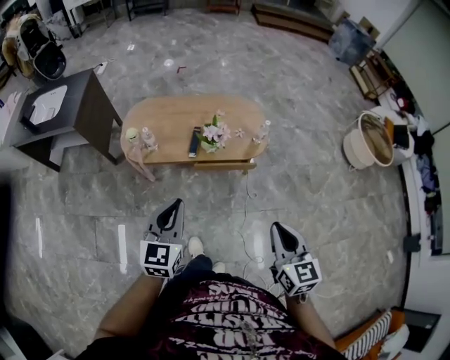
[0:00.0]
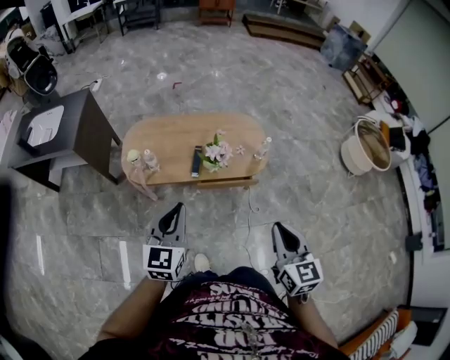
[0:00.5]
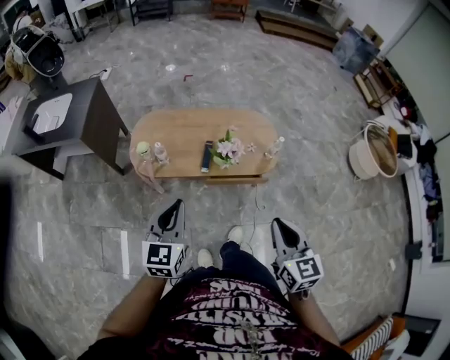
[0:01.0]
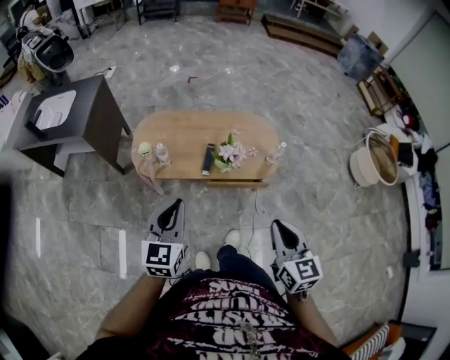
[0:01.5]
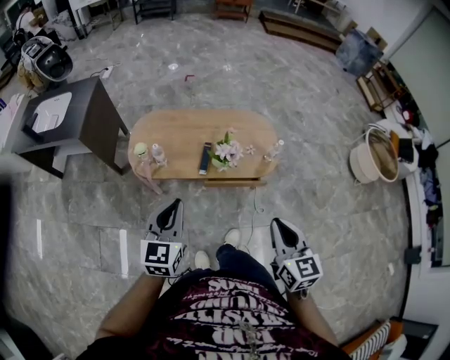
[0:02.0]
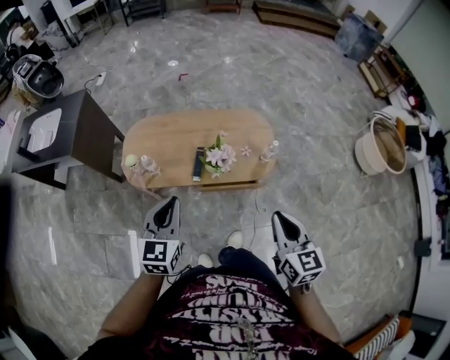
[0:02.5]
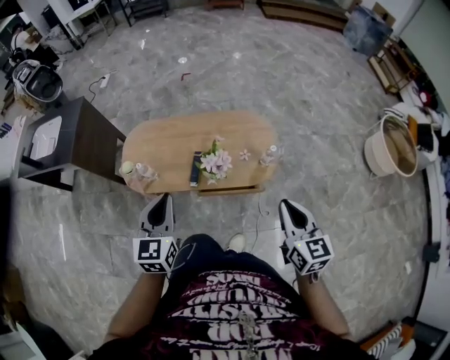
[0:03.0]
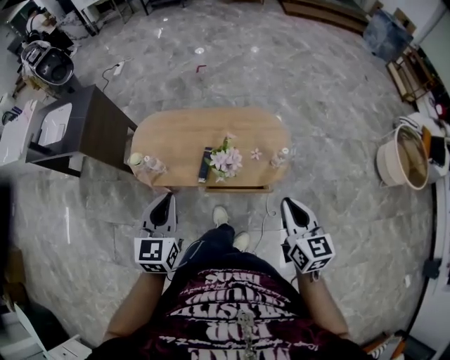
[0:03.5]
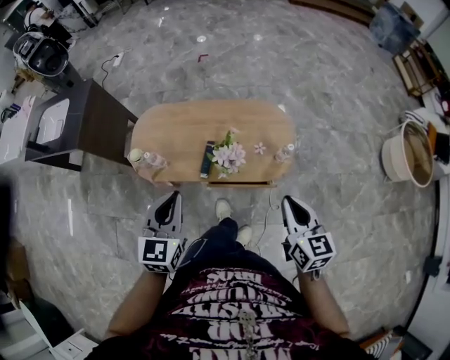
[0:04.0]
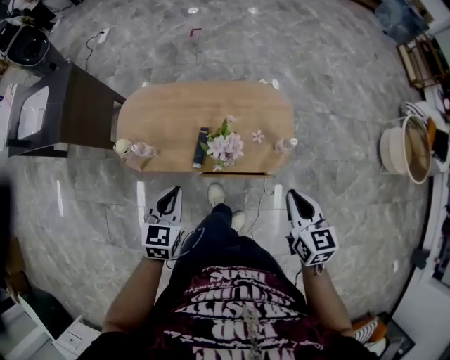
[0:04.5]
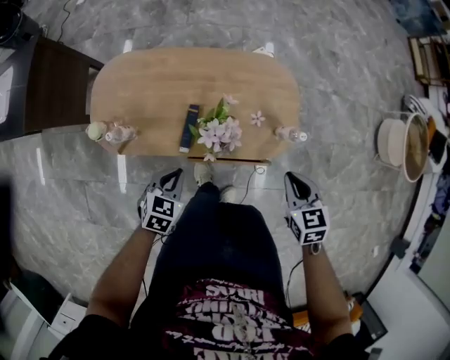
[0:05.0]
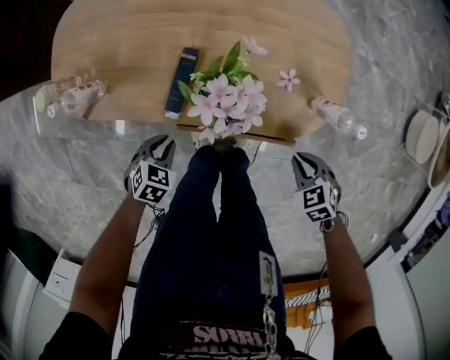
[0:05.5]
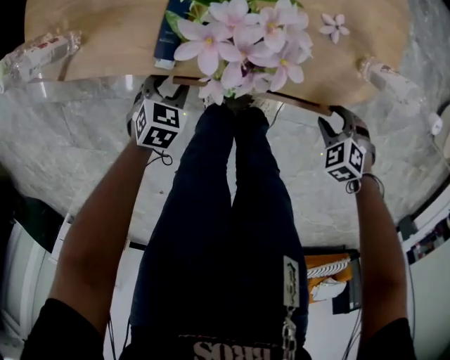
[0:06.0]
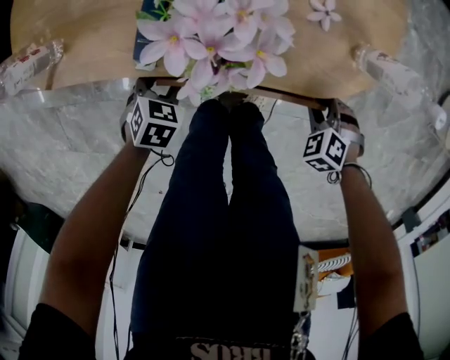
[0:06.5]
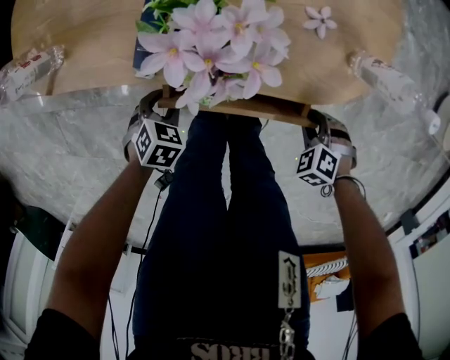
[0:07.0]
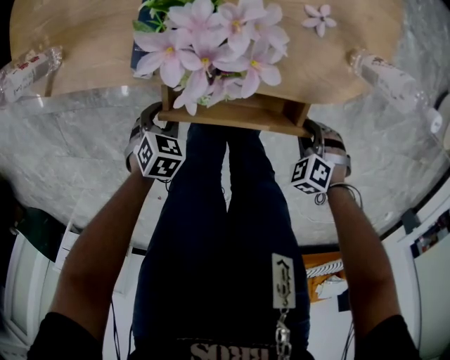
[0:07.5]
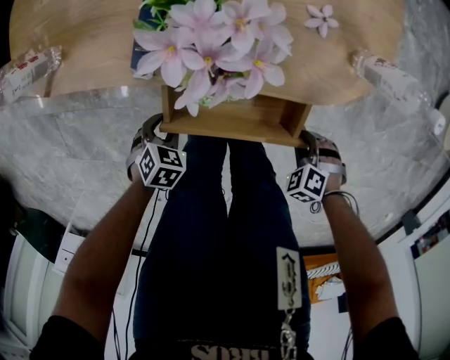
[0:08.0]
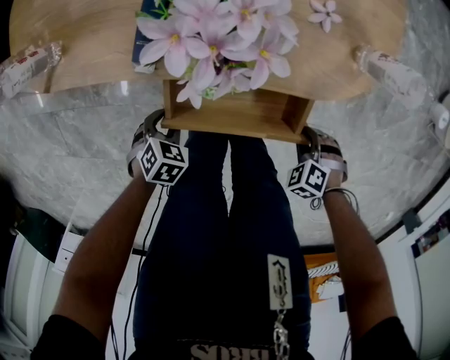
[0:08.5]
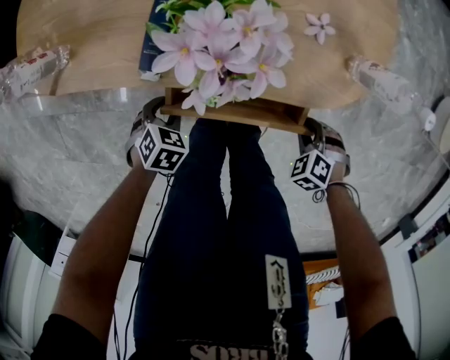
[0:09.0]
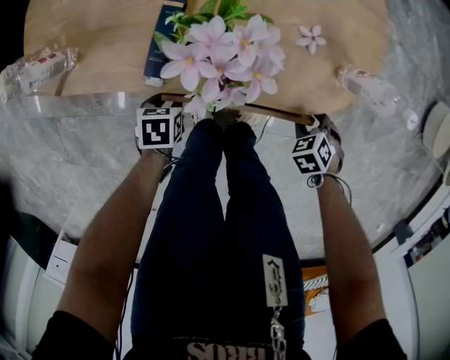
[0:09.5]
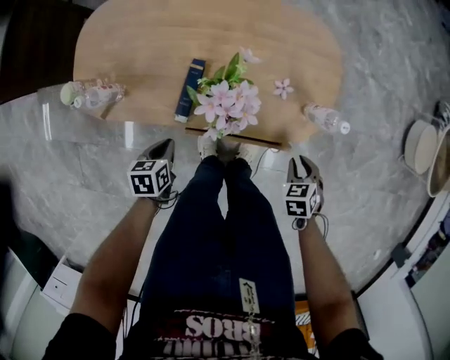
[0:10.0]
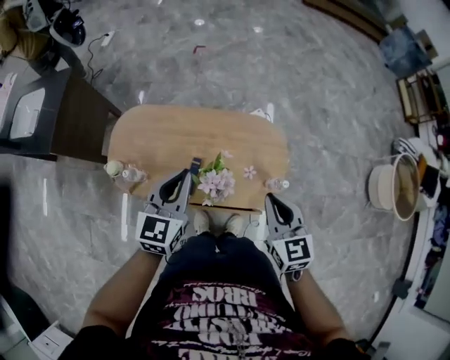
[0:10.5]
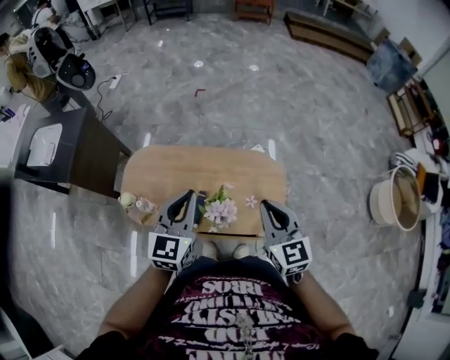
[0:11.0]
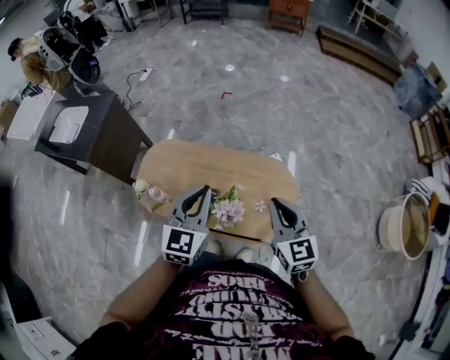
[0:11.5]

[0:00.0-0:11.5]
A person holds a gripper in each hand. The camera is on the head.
0.0 to 2.0 s: Both grippers move forward and to the left, roughly 10 cm.
2.0 to 4.0 s: Both grippers travel together forward and to the right, some 20 cm.
4.0 to 6.0 s: Both grippers travel together downward, some 60 cm. The left gripper angles its fingers downward, by some 50 degrees, and opens its fingers. The right gripper angles its fingers downward, by some 60 degrees, and opens its fingers.
6.0 to 7.5 s: The right gripper ends up some 5 cm from where it was, and closes its fingers; the left gripper shifts by roughly 10 cm.
7.5 to 9.5 s: The left gripper changes place by approximately 5 cm, and changes its angle by roughly 30 degrees, while the right gripper shifts by approximately 10 cm, turns by some 30 degrees, and opens.
9.5 to 11.5 s: Both grippers move upward, about 70 cm. The left gripper points its fingers approximately 60 degrees further upward, and closes its fingers. The right gripper tips its fingers upward by some 70 degrees, and closes up.

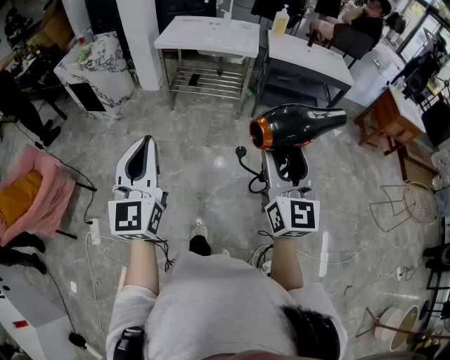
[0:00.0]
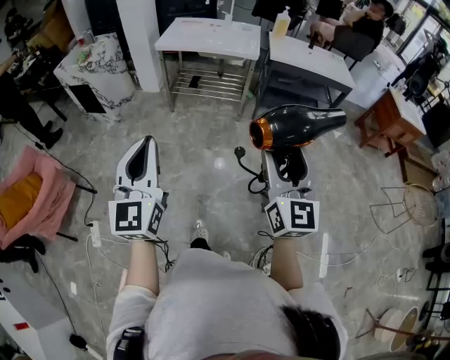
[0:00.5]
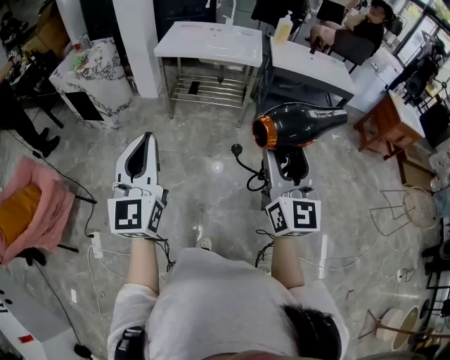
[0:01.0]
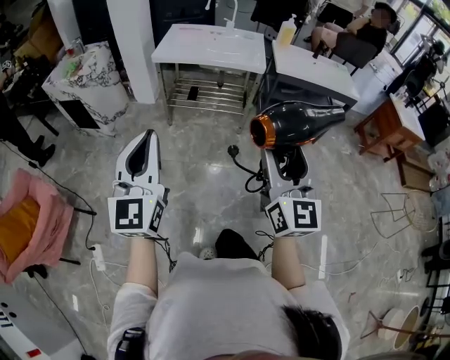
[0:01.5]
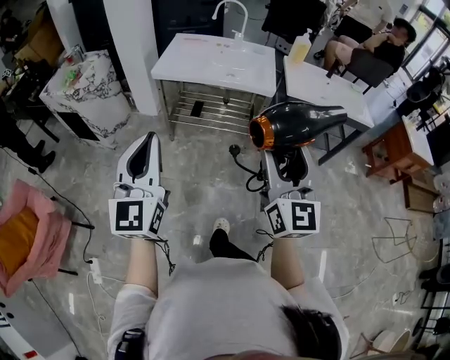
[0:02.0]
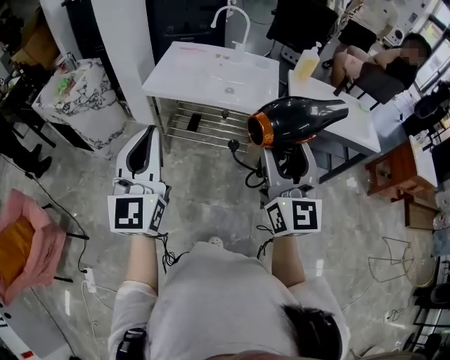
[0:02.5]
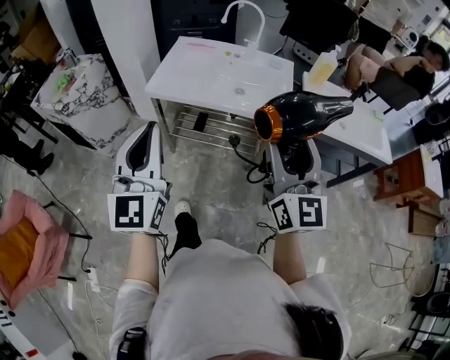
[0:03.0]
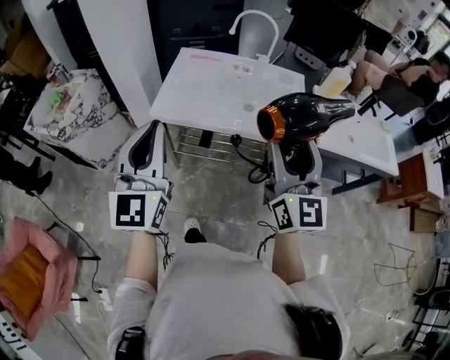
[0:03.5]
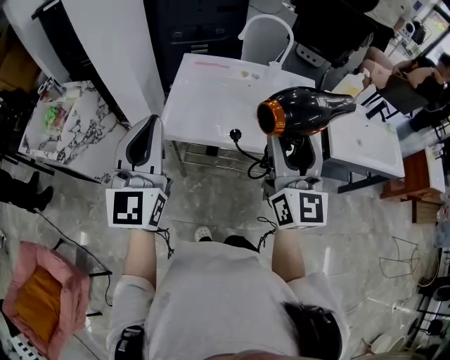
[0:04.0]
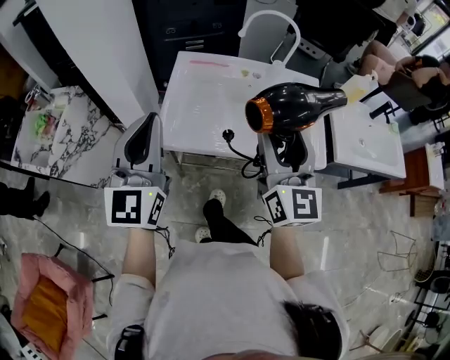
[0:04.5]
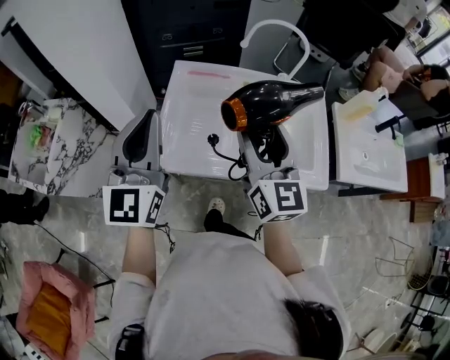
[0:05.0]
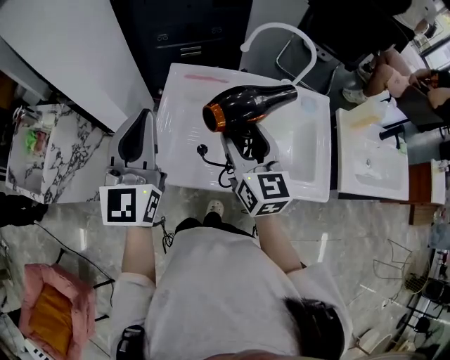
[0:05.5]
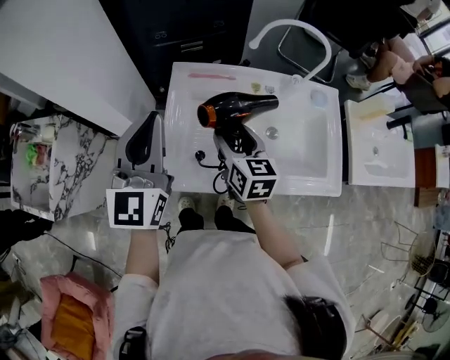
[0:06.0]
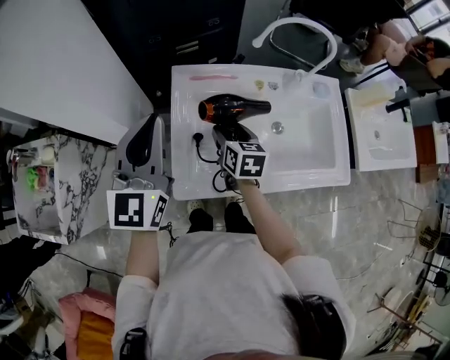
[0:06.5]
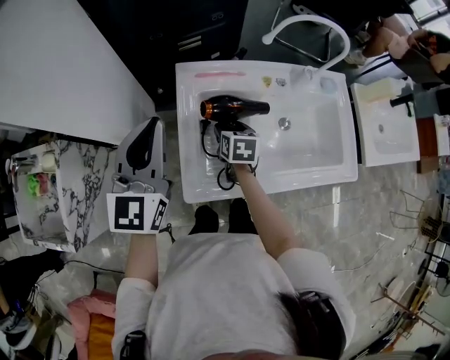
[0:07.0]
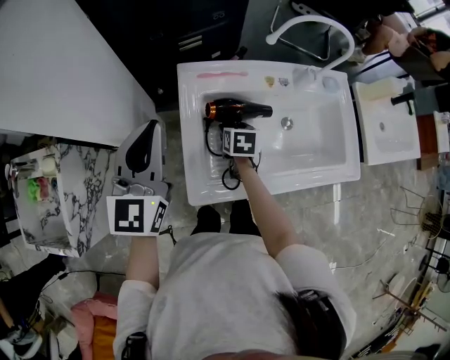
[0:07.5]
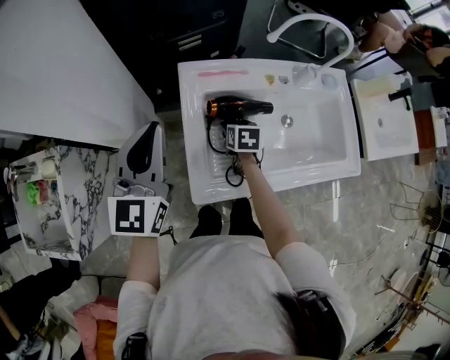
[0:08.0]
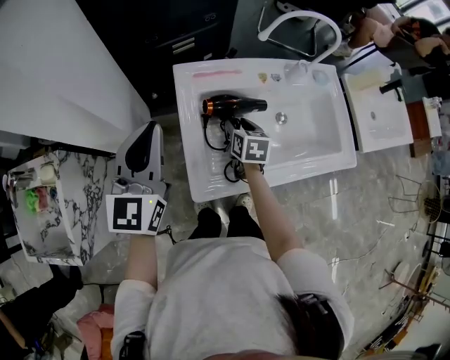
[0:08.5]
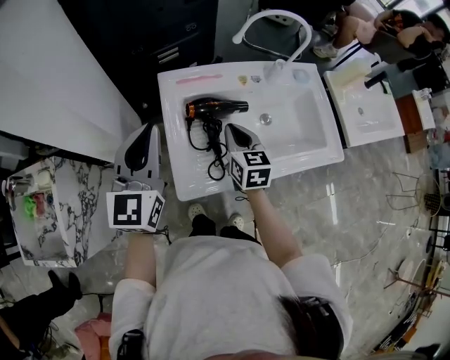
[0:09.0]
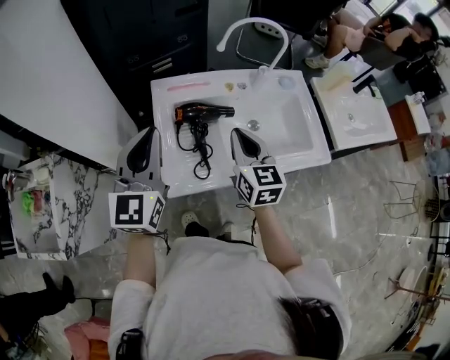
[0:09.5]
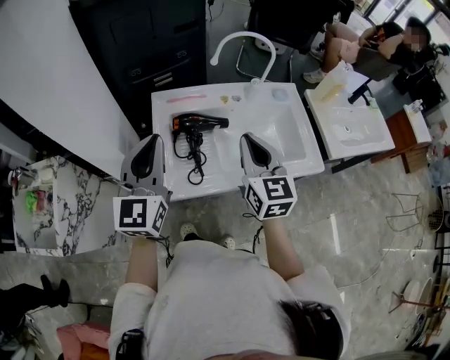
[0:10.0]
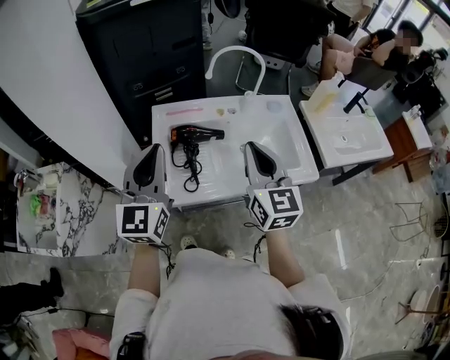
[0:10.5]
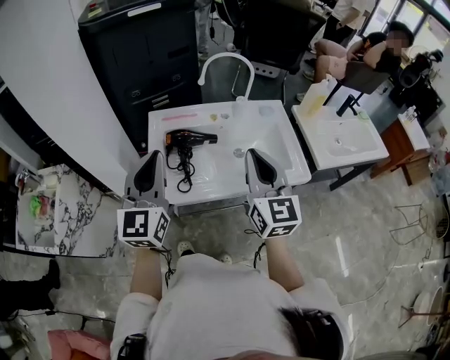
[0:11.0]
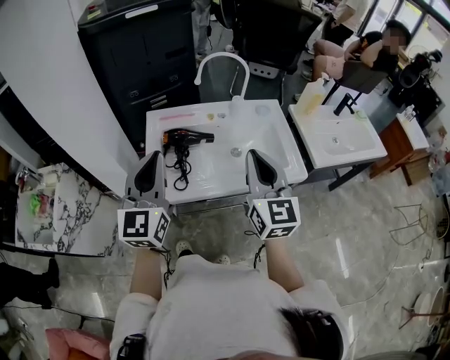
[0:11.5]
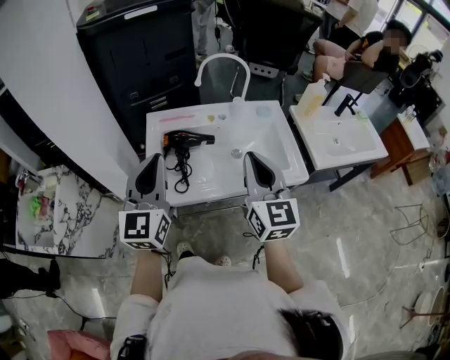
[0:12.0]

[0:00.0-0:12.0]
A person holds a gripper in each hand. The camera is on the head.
0.0 to 2.0 s: Both grippers travel together forward, about 30 cm.
2.0 to 4.0 s: The pair of grippers is taken forward, roughly 50 cm.
4.0 to 6.0 s: The left gripper is displaced forward by some 30 cm. Meanwhile the right gripper heads forward, downward and to the left, covering roughly 40 cm, and points its fingers approximately 30 degrees further downward.
6.0 to 8.0 s: The left gripper shifts roughly 10 cm to the left, downward and forward. The right gripper is displaced downward by approximately 20 cm, and tips its fingers downward by roughly 30 degrees.
8.0 to 10.0 s: The right gripper goes about 35 cm upward, backward and to the right, tilts its fingers some 50 degrees upward, and closes, while the left gripper goes some 15 cm to the right, backward and upward.
10.0 to 12.0 s: The left gripper is displaced backward and to the right by about 10 cm, while the right gripper goes some 15 cm backward, to the right and upward.

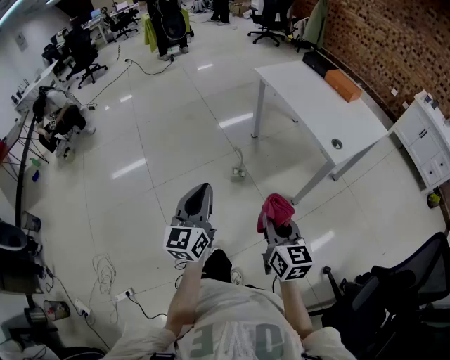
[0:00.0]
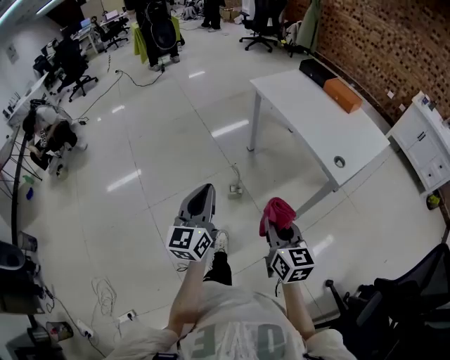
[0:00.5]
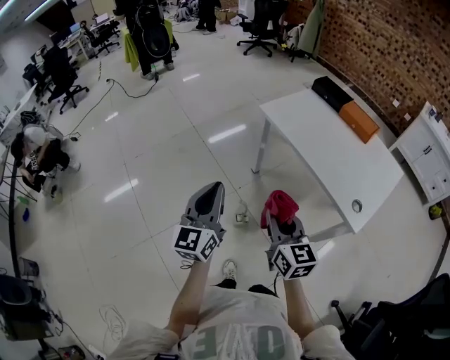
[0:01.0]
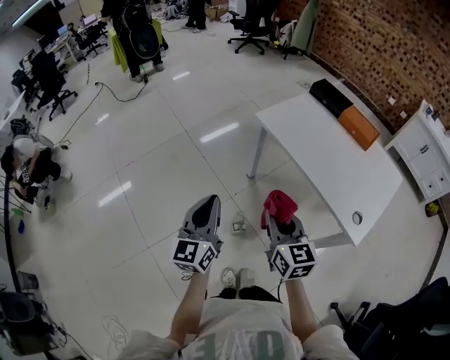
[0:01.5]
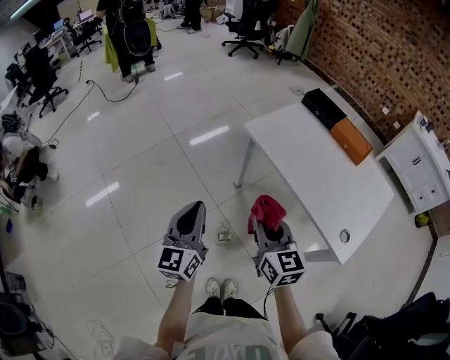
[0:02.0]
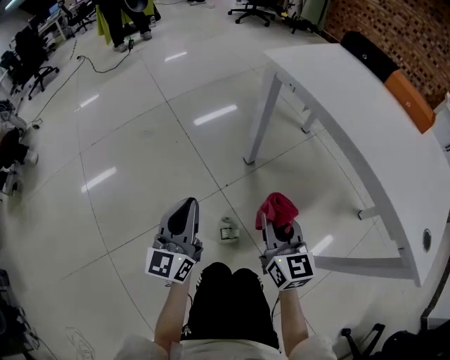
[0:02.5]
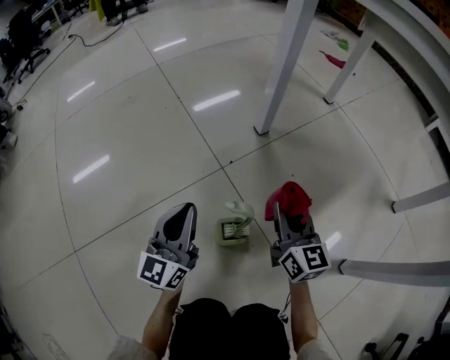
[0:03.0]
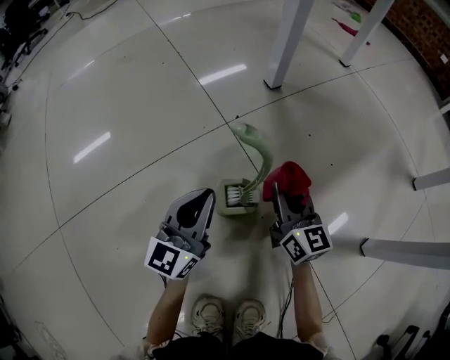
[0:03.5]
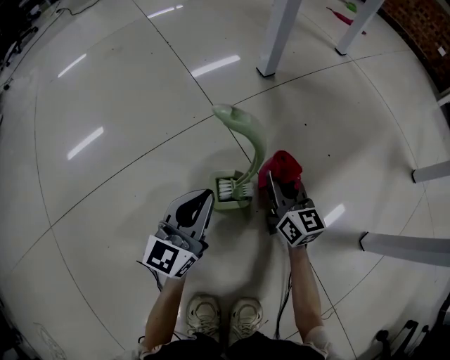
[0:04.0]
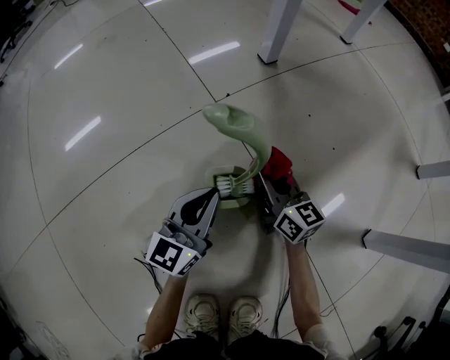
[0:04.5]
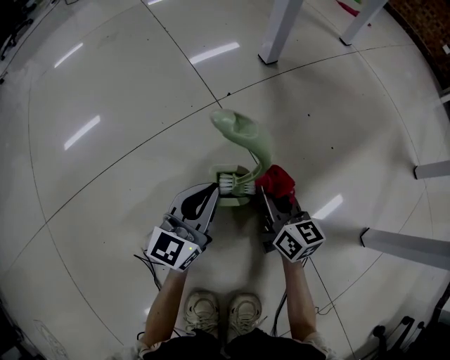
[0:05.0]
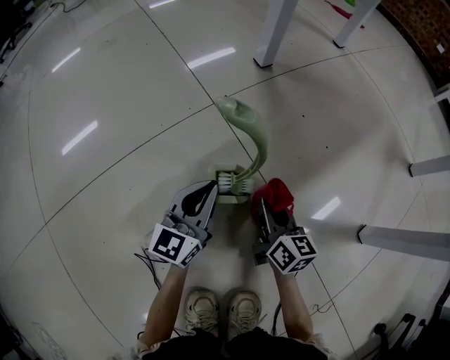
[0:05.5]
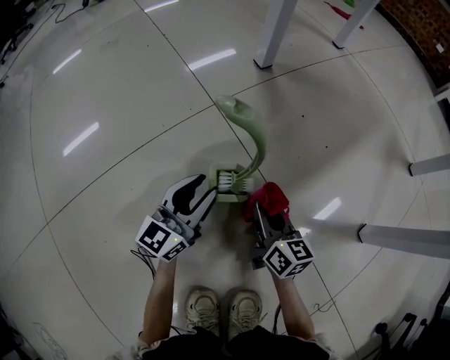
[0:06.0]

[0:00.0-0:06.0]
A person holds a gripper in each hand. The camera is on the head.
0.0 to 2.0 s: The two grippers travel together, forward, approximately 50 cm.
2.0 to 4.0 s: The two grippers go some 90 cm downward.
4.0 to 6.0 s: The right gripper moves backward, roughly 10 cm.
